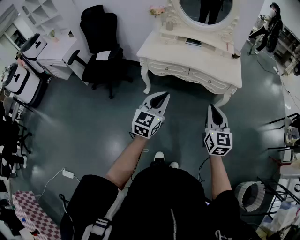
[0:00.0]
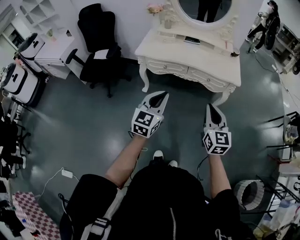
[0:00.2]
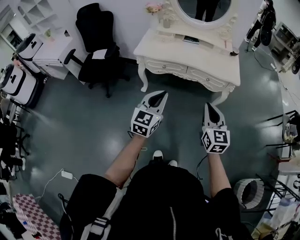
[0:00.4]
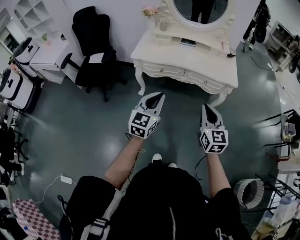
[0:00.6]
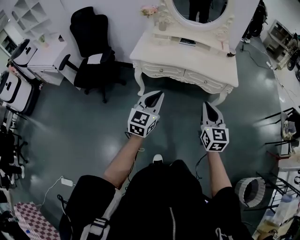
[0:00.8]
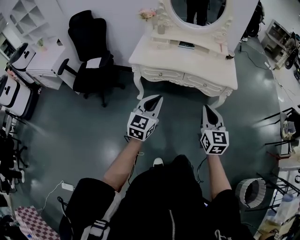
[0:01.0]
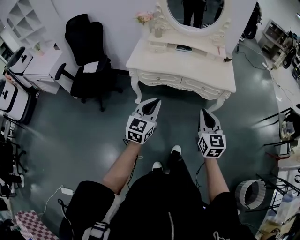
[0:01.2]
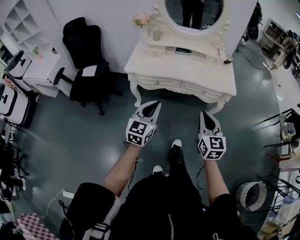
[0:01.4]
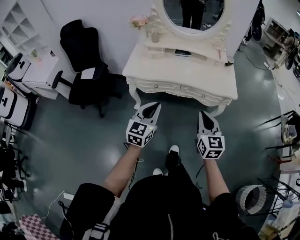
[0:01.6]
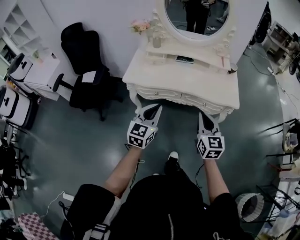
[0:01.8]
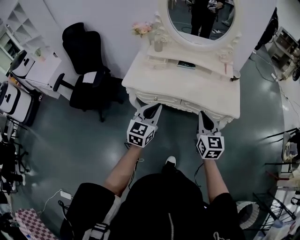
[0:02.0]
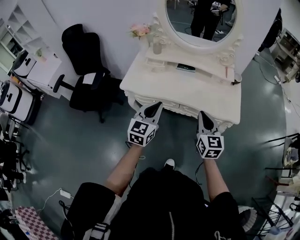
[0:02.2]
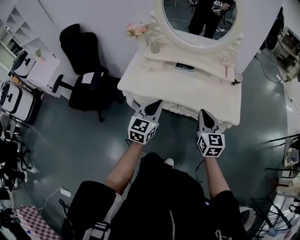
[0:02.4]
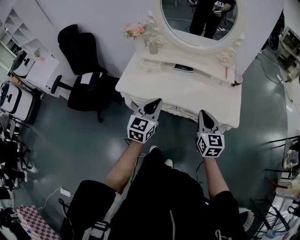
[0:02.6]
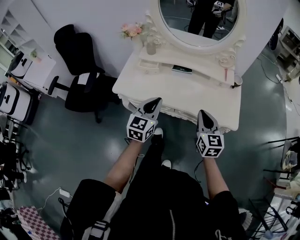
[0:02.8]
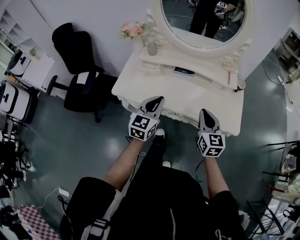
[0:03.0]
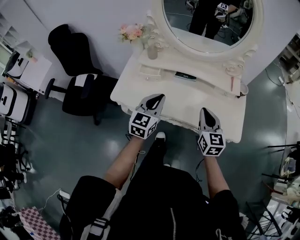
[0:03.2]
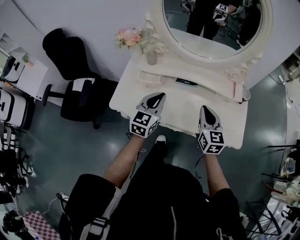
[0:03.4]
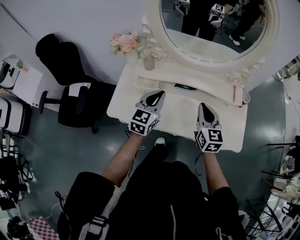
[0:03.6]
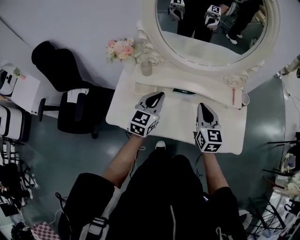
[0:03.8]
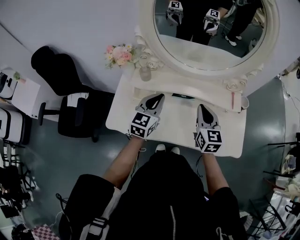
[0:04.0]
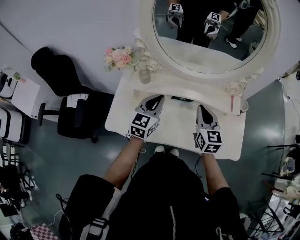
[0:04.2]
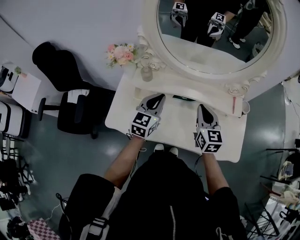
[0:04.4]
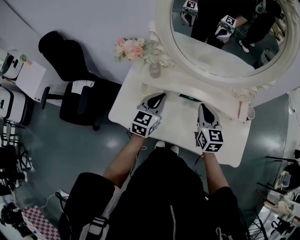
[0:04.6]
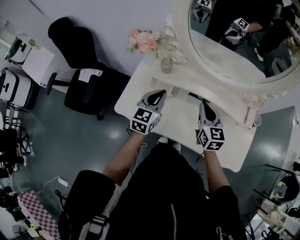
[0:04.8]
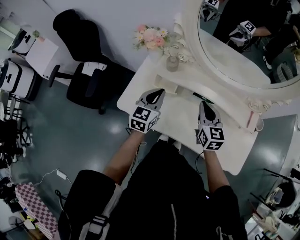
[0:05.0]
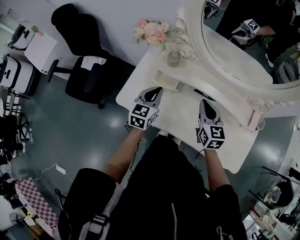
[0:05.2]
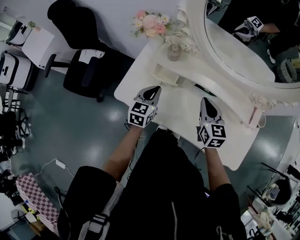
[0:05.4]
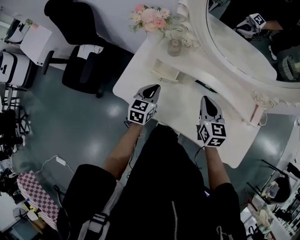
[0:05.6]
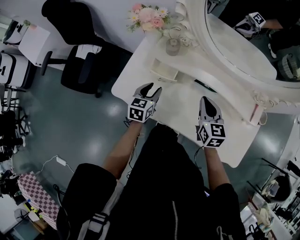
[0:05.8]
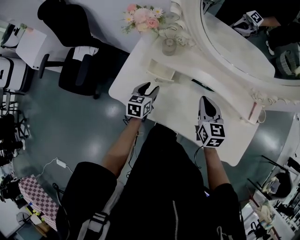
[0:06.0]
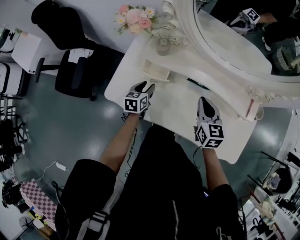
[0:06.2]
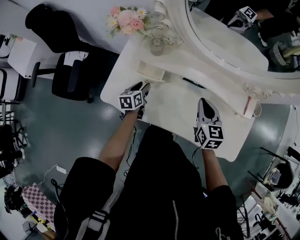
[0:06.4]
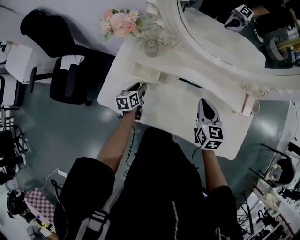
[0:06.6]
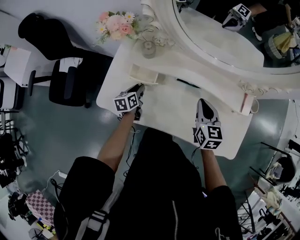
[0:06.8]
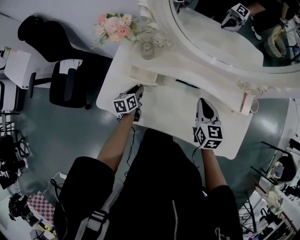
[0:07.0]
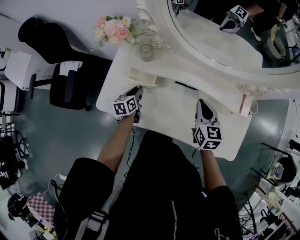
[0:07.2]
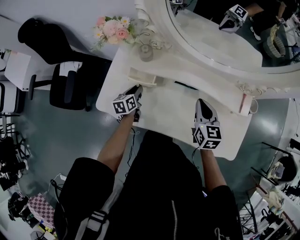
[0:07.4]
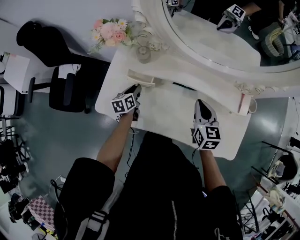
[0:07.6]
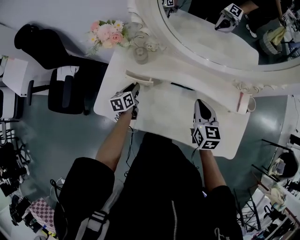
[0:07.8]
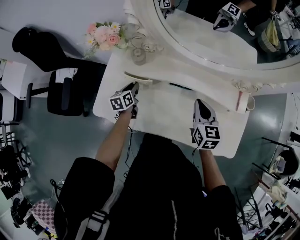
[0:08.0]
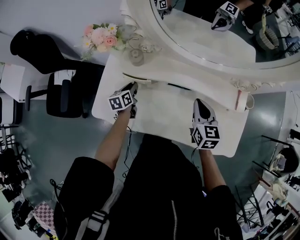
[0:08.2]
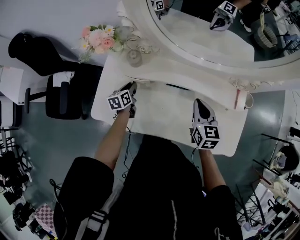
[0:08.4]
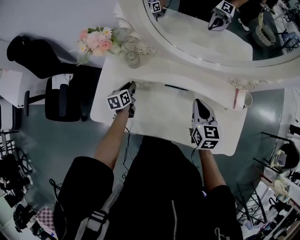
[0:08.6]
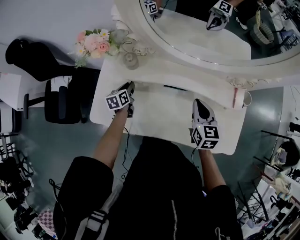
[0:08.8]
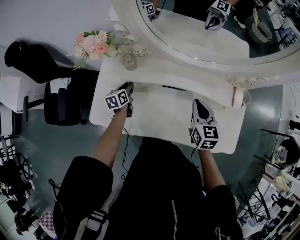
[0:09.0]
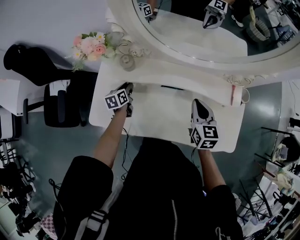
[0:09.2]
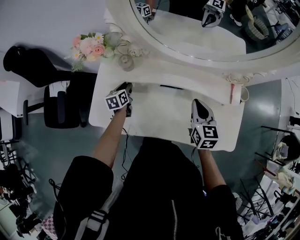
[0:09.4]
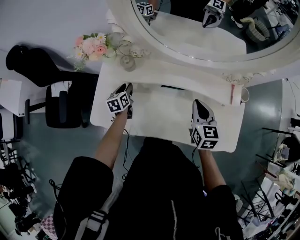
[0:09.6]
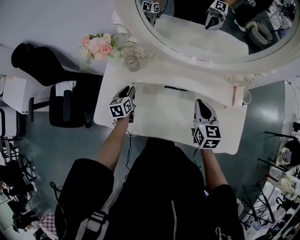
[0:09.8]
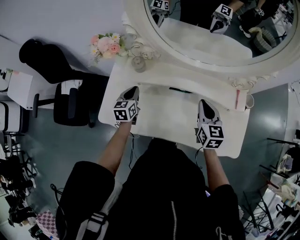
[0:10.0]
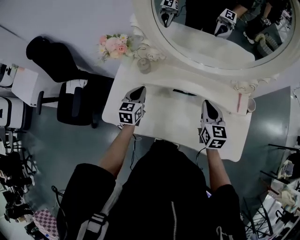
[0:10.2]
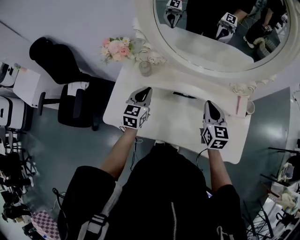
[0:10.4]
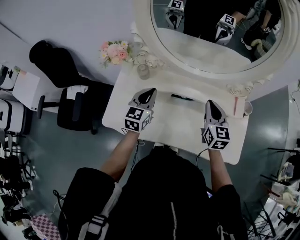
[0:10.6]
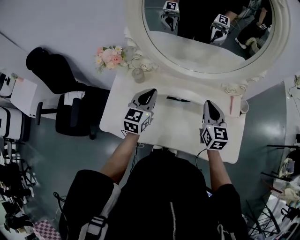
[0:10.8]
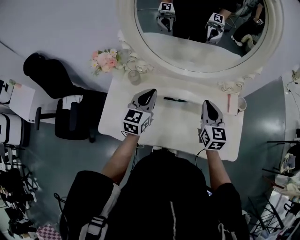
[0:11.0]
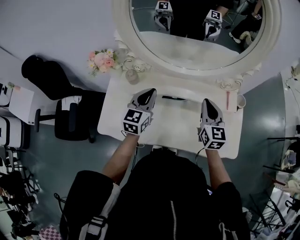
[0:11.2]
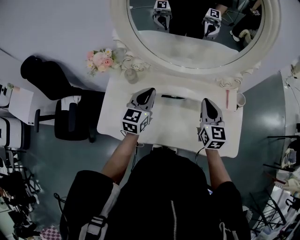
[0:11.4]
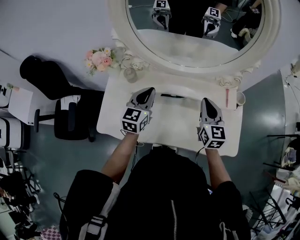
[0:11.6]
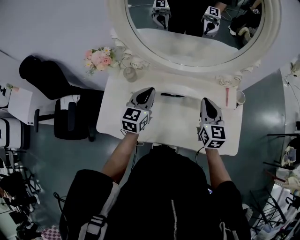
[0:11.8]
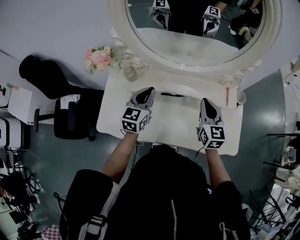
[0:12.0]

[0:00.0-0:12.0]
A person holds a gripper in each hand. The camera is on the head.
0:00.0 to 0:01.6: Both grippers move forward, roughly 15 cm.
0:01.6 to 0:03.0: The grippers both shift forward by some 30 cm.
0:03.0 to 0:04.4: Both grippers travel together forward, some 25 cm.
0:04.4 to 0:06.0: The left gripper is displaced downward and to the left by roughly 25 cm, rotates about 30 degrees, and opens its fingers. The right gripper shifts roughly 10 cm downward and to the left.
0:06.0 to 0:07.6: The left gripper shifts about 5 cm forward, and closes up, while the right gripper is displaced to the right by roughly 5 cm.
0:07.6 to 0:09.0: The left gripper travels forward by some 5 cm.
0:09.0 to 0:10.4: The left gripper goes about 20 cm upward, changes its angle by roughly 40 degrees, and closes its fingers. The right gripper goes approximately 5 cm upward.
0:10.4 to 0:12.0: The left gripper shifts about 10 cm to the right.

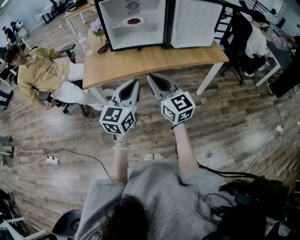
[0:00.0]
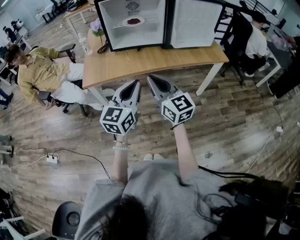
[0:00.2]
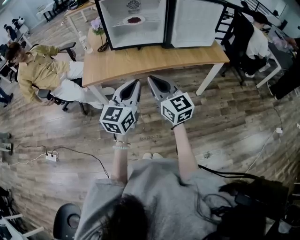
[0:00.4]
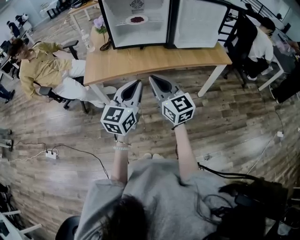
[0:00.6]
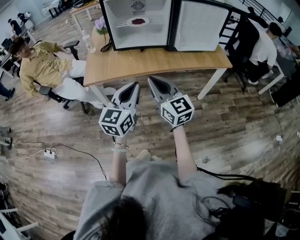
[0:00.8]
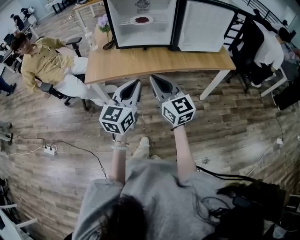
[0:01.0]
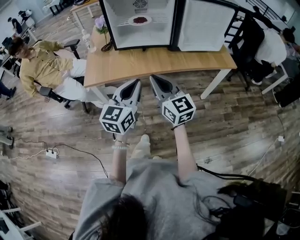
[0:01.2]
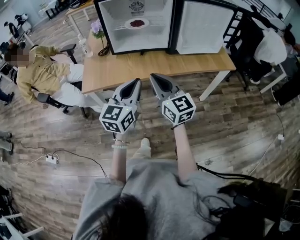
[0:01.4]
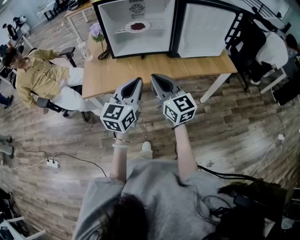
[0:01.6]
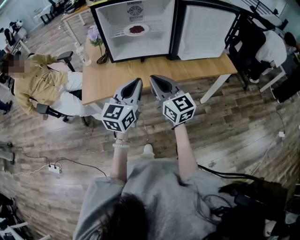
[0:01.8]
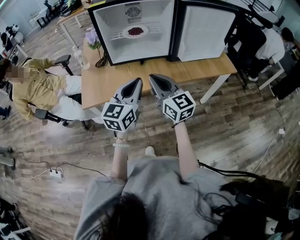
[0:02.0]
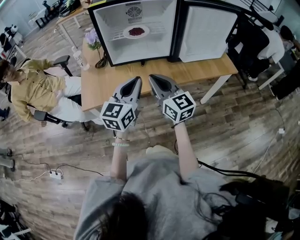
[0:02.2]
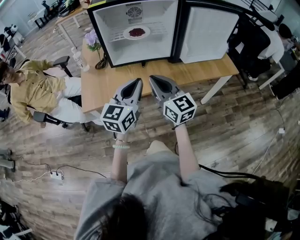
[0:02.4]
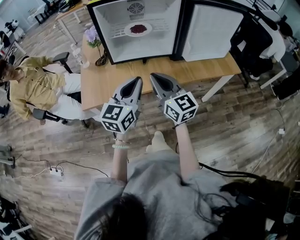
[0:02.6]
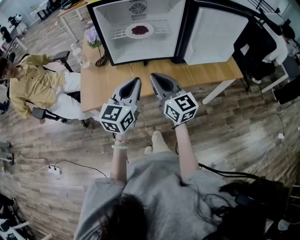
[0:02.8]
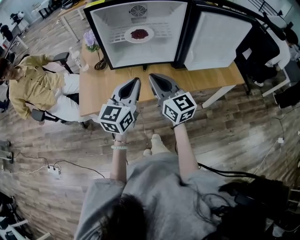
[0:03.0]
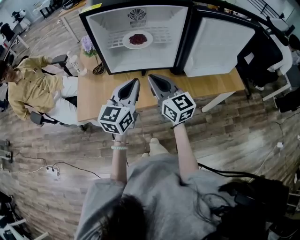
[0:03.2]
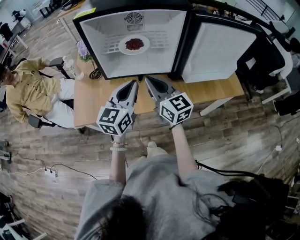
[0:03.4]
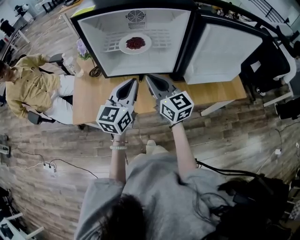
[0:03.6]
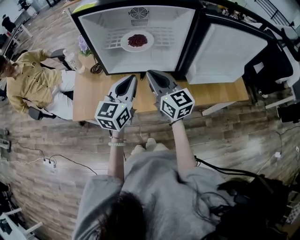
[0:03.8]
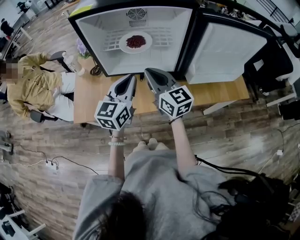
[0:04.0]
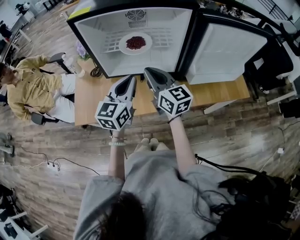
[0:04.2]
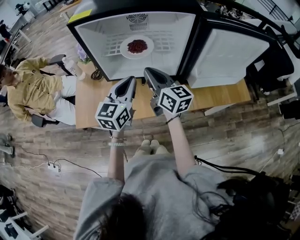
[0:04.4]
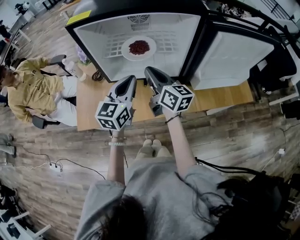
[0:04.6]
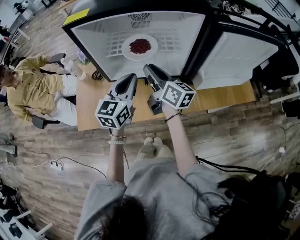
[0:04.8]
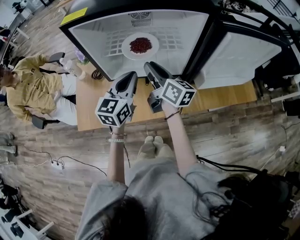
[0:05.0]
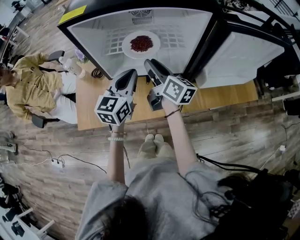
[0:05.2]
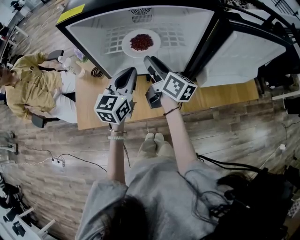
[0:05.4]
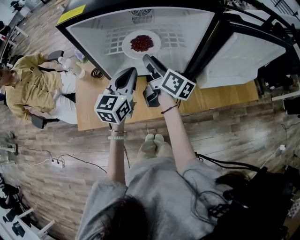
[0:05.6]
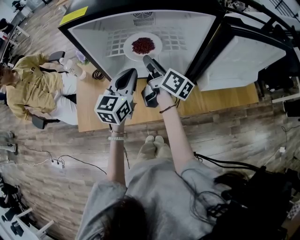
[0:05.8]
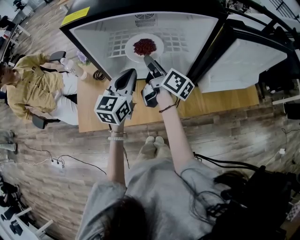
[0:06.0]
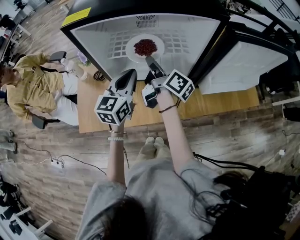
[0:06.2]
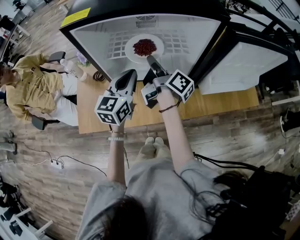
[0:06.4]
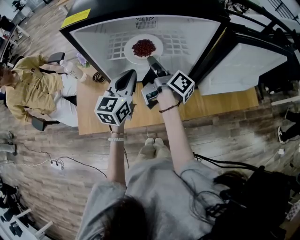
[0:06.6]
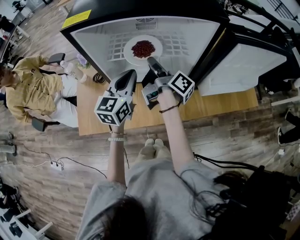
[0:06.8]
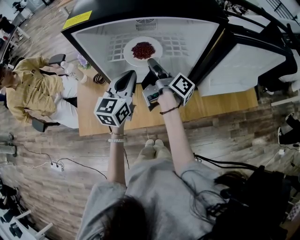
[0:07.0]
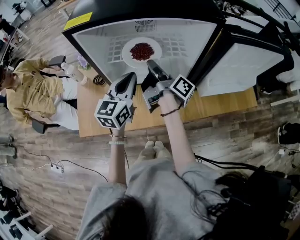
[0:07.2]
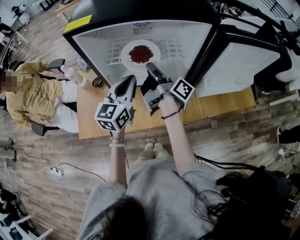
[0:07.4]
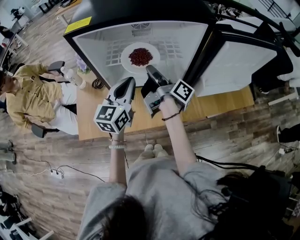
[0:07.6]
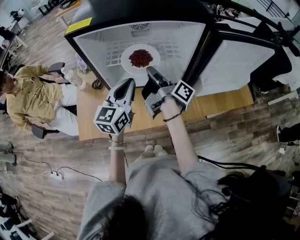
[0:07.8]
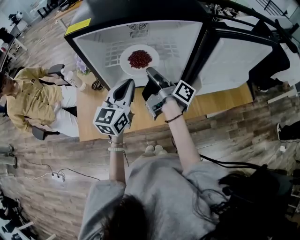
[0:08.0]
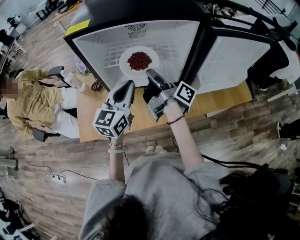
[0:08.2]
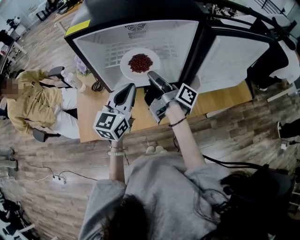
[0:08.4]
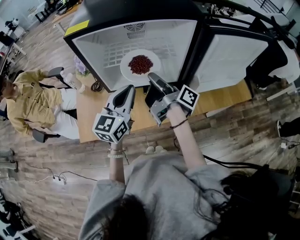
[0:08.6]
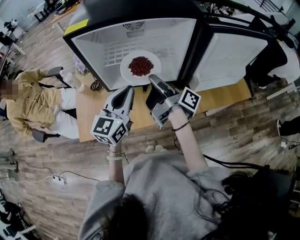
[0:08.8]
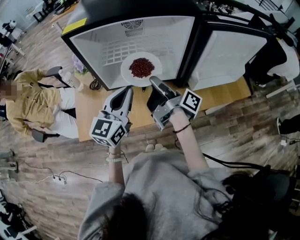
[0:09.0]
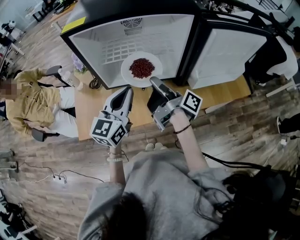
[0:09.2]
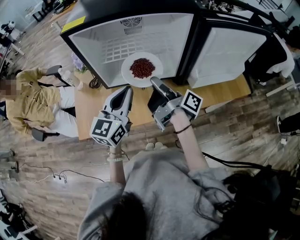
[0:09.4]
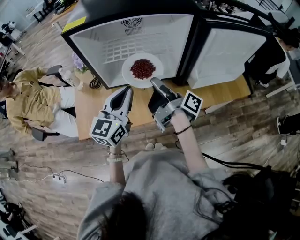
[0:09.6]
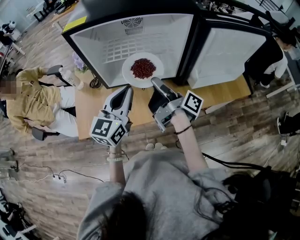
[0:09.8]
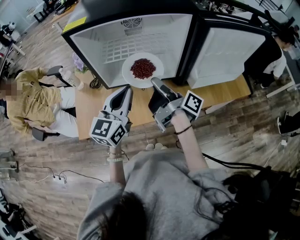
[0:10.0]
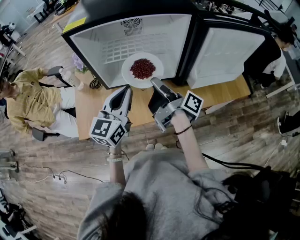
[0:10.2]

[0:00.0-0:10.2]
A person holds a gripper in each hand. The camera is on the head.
0:00.0 to 0:01.4: Both grippers travel together forward, approximately 5 cm.
0:01.4 to 0:03.0: The two grippers go roughly 15 cm forward.
0:03.0 to 0:04.4: Both grippers move forward, some 15 cm.
0:04.4 to 0:05.8: Both grippers travel together forward, about 10 cm. The right gripper turns by some 40 degrees, and opens up.
0:05.8 to 0:07.2: The right gripper turns by about 30 degrees.
0:07.2 to 0:08.8: The grippers both shift backward by about 5 cm.
0:08.8 to 0:10.2: The grippers stay close to where they were, moving slightly.

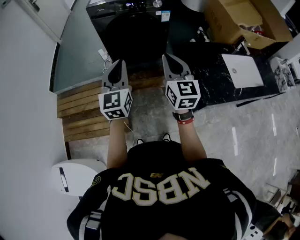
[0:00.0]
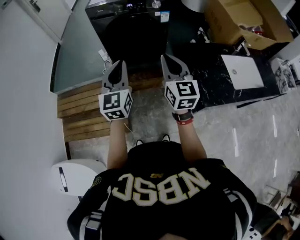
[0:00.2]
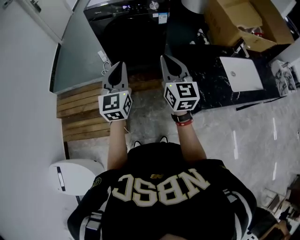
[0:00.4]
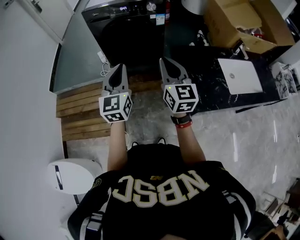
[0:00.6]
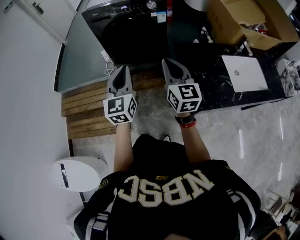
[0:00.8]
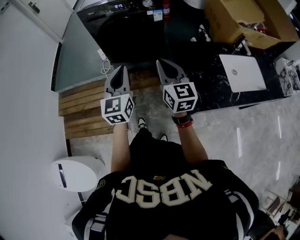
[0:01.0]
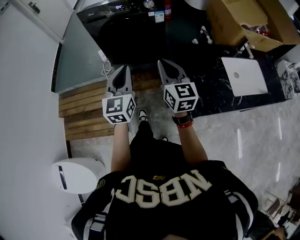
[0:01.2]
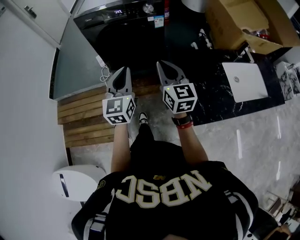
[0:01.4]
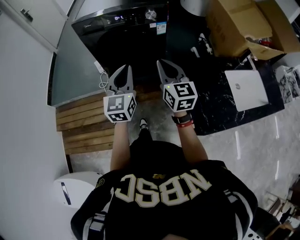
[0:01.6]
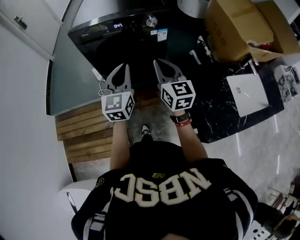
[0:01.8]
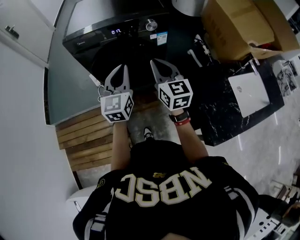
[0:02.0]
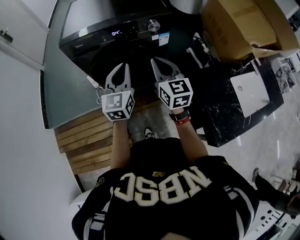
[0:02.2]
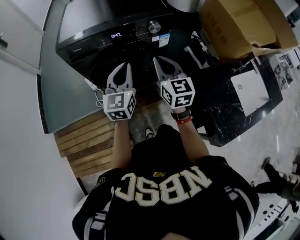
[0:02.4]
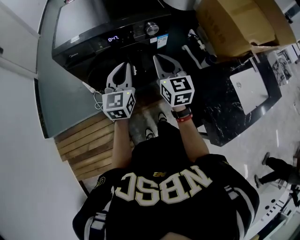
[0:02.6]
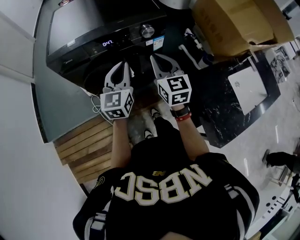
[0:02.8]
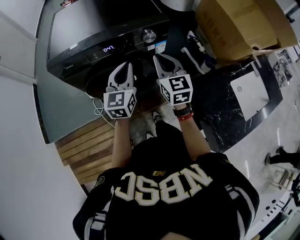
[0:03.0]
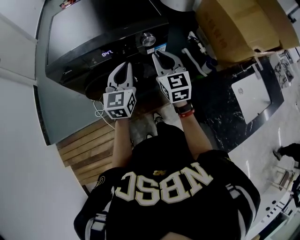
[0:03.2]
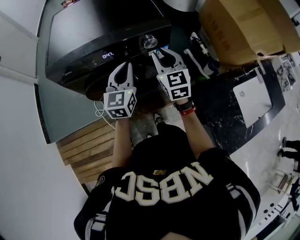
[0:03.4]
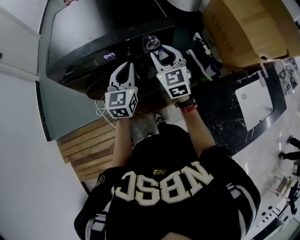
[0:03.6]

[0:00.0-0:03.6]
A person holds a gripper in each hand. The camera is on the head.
0:00.0 to 0:01.8: The two grippers go roughly 25 cm forward.
0:01.8 to 0:03.6: Both grippers travel together forward, some 25 cm. The right gripper changes its angle by about 30 degrees, and opens.
